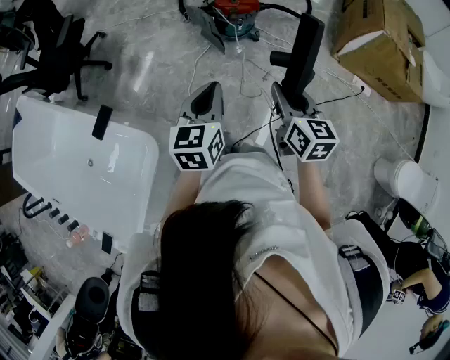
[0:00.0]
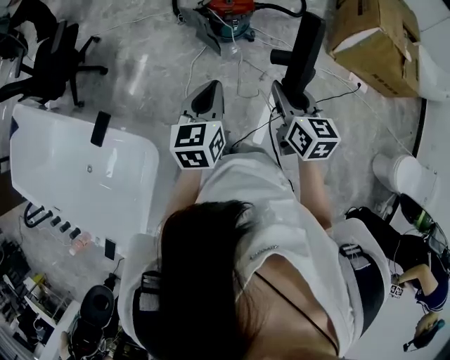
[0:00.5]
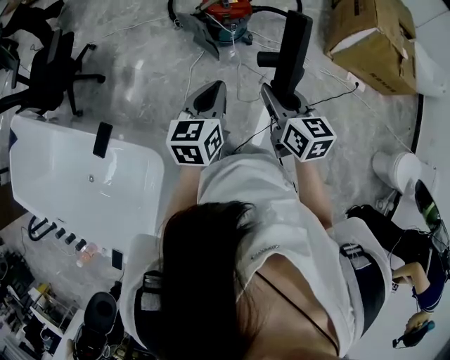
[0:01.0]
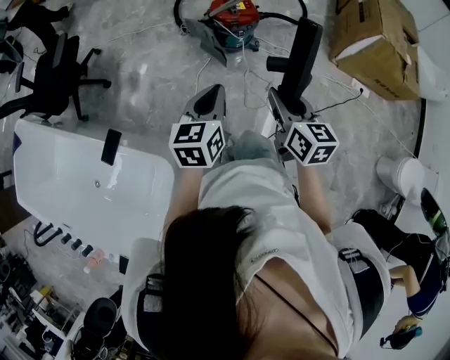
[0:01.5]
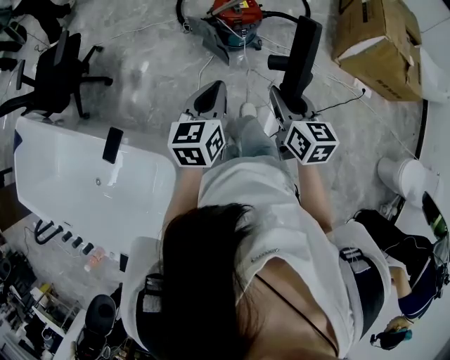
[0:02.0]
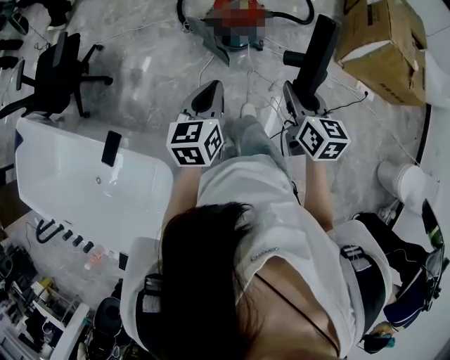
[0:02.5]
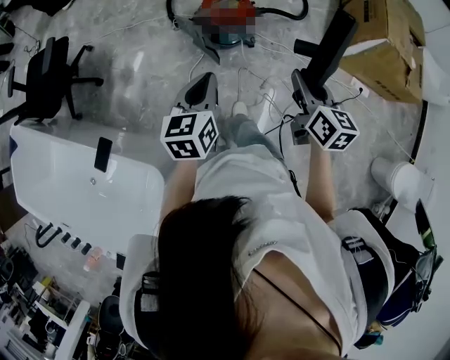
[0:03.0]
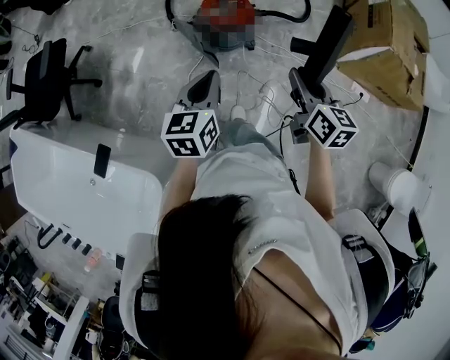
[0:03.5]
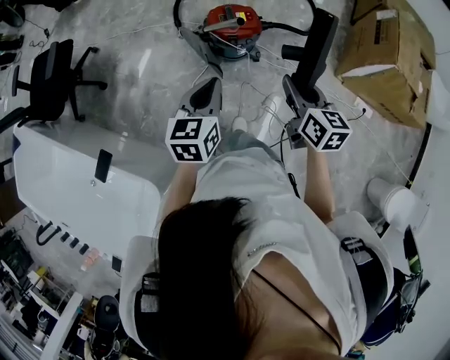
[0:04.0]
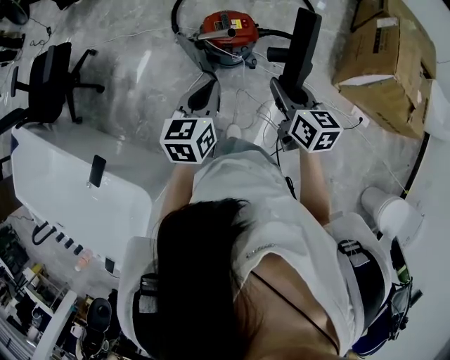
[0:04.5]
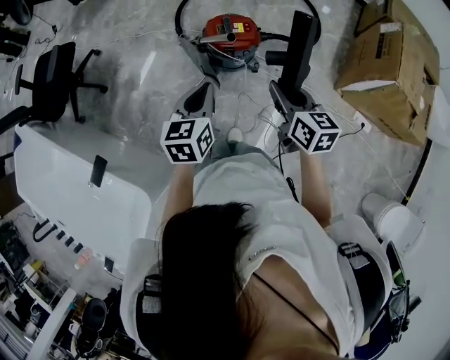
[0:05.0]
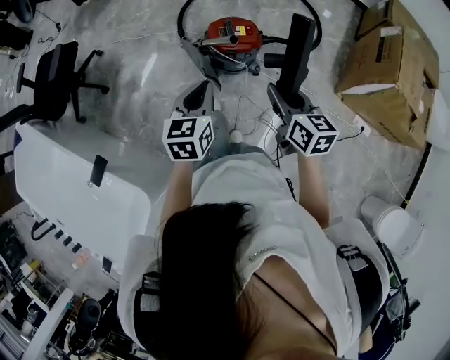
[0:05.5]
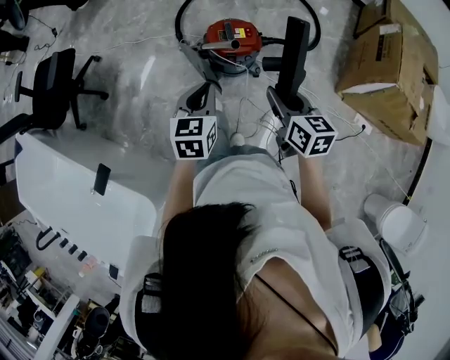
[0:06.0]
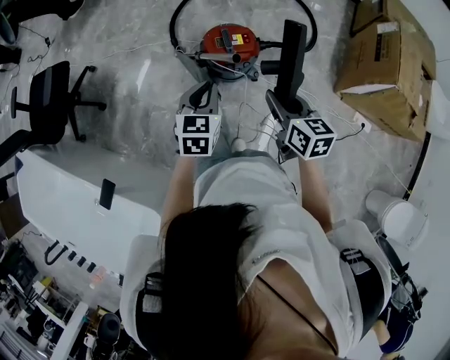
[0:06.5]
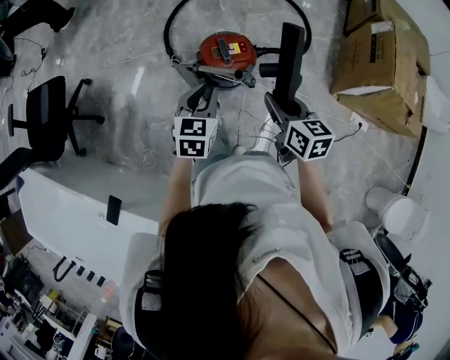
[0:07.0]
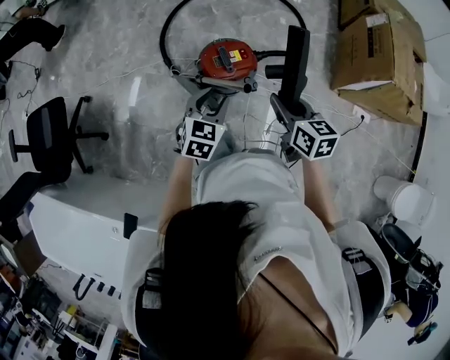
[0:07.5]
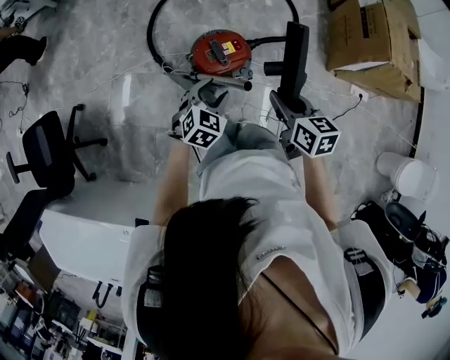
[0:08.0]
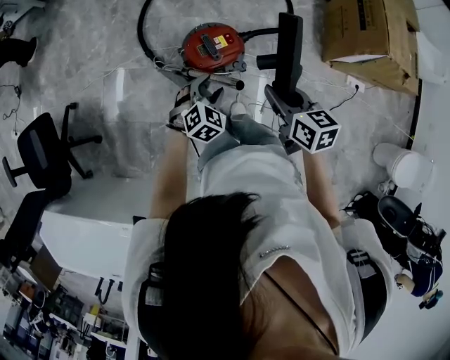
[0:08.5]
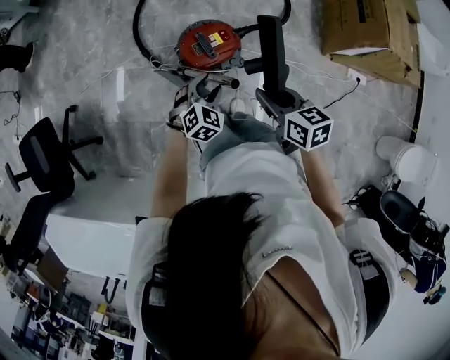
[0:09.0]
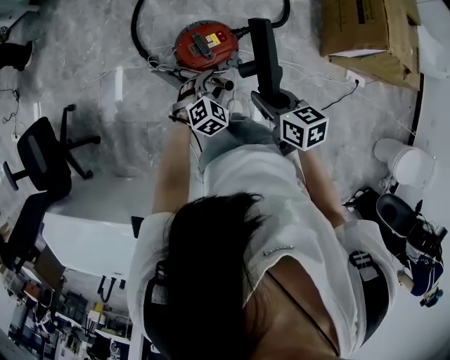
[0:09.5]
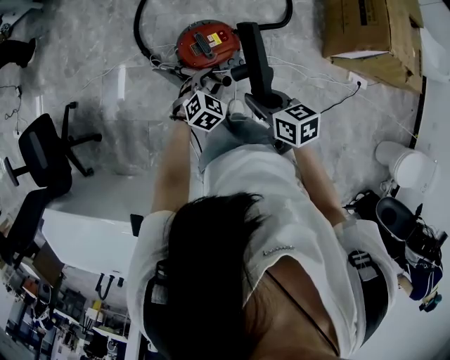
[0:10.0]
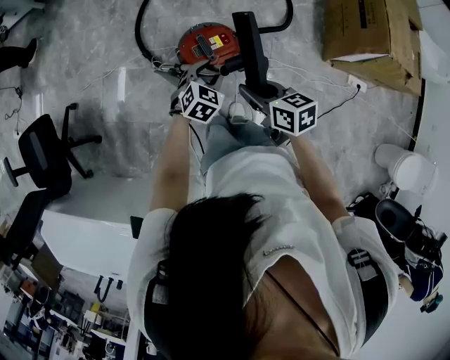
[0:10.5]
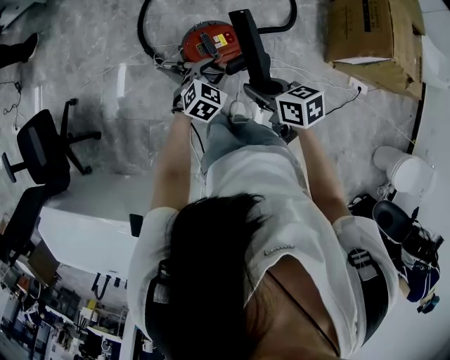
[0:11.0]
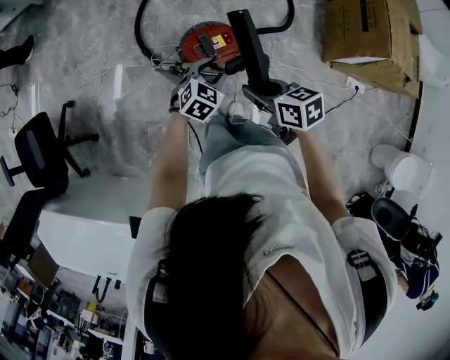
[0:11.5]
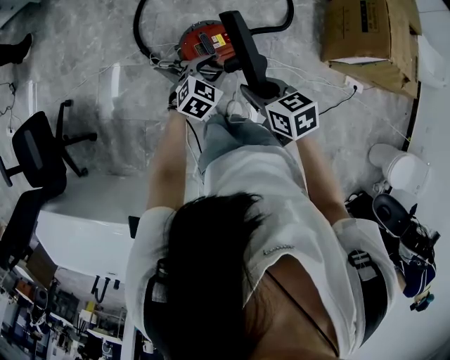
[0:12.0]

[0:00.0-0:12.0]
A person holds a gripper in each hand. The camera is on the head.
0:00.0 to 0:02.0: The right gripper shifts some 10 cm to the left and forward. The left gripper heads forward and to the left, covering approximately 10 cm.
0:02.0 to 0:04.0: The right gripper moves forward and to the right, approximately 25 cm; the left gripper heads forward, covering roughly 20 cm.
0:04.0 to 0:06.0: Both grippers move forward, about 5 cm.
0:06.0 to 0:08.0: The left gripper moves forward and downward, about 20 cm, swivels approximately 50 degrees, and opens. The right gripper goes about 15 cm forward.
0:08.0 to 0:10.0: The left gripper goes roughly 10 cm downward and to the right.
0:10.0 to 0:12.0: The right gripper changes place by some 5 cm; the left gripper shifts roughly 5 cm forward.

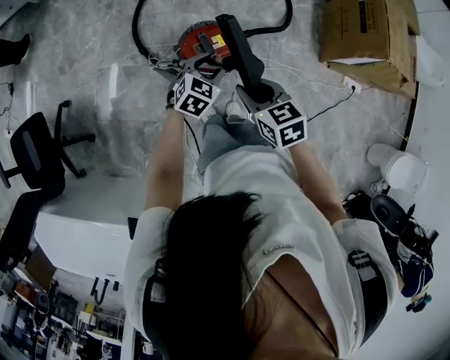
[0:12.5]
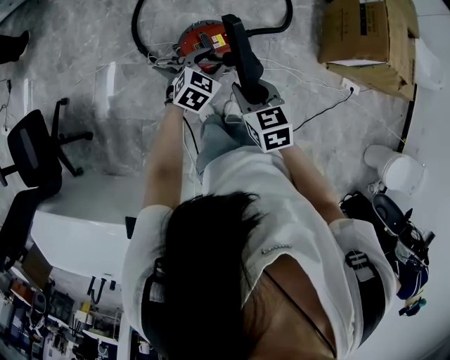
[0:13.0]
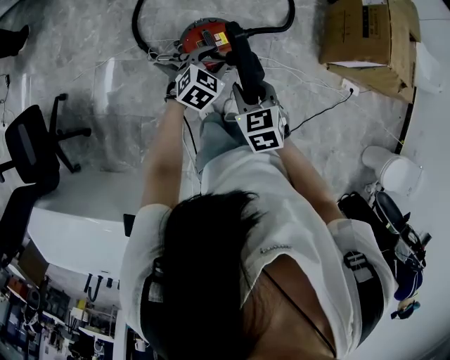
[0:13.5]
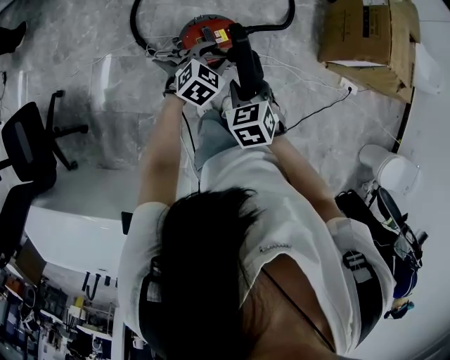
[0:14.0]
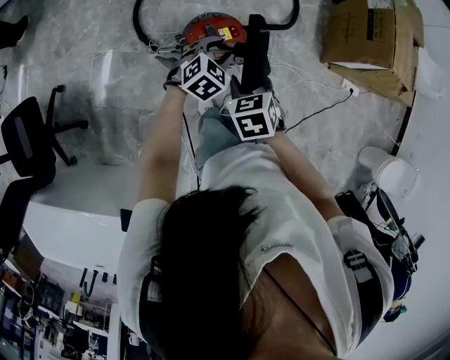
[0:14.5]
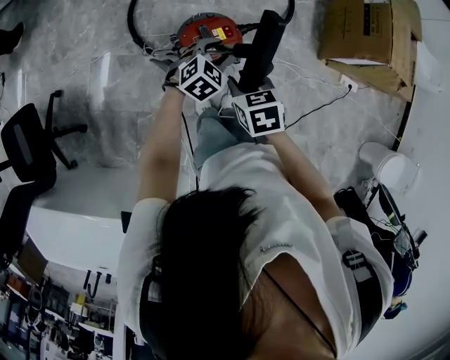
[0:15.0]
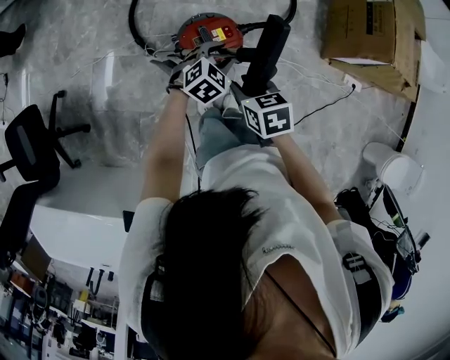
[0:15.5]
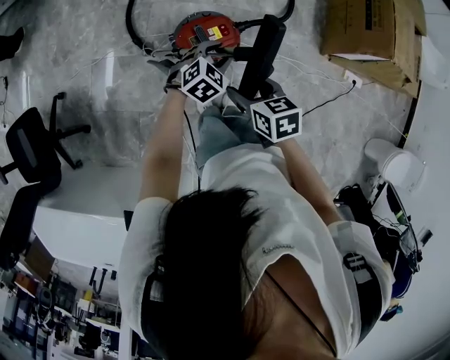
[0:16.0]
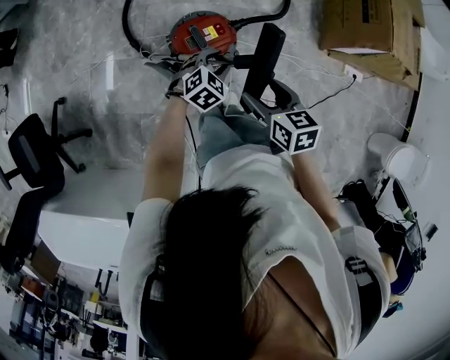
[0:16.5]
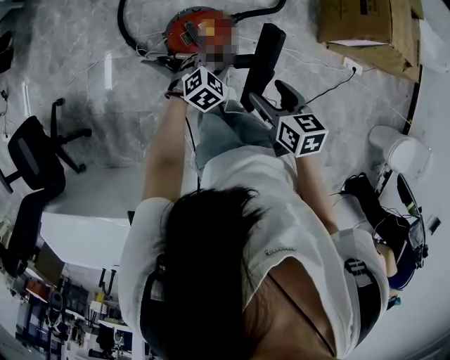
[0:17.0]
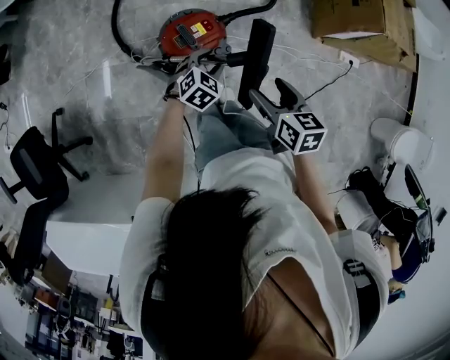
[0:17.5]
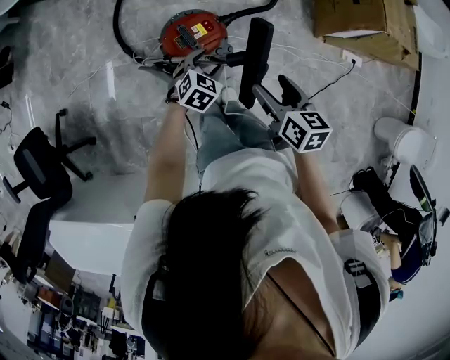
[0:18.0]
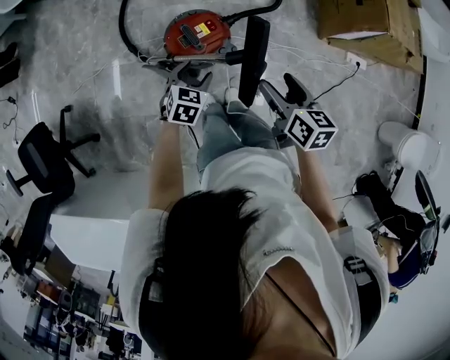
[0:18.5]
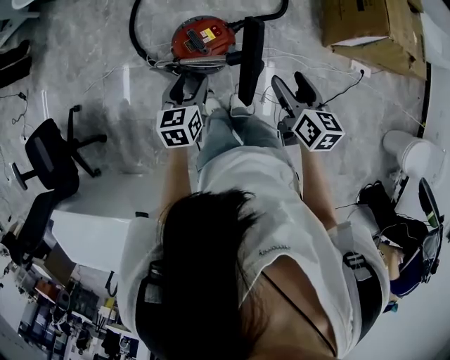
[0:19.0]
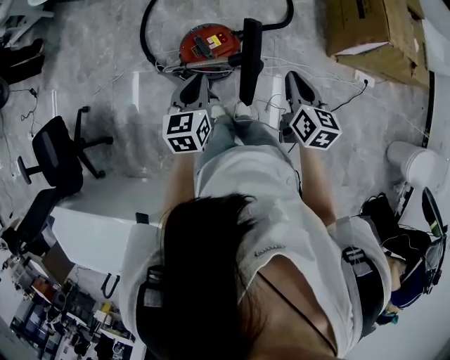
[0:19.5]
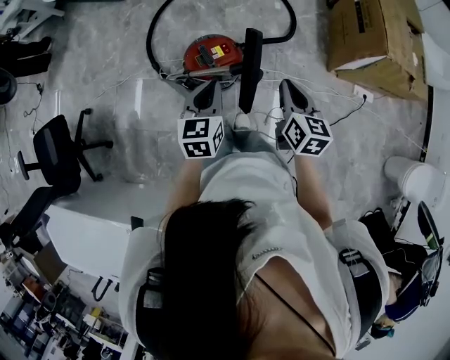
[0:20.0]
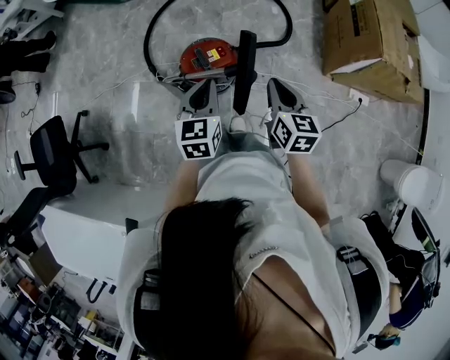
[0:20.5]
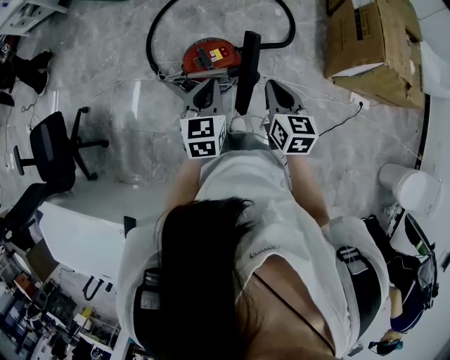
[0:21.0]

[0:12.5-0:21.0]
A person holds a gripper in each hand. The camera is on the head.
0:12.5 to 0:14.5: The right gripper changes place by about 5 cm, and changes its angle by roughly 20 degrees.
0:14.5 to 0:16.5: The left gripper travels to the right by some 5 cm. The right gripper is displaced to the right by some 10 cm, turns by approximately 30 degrees, and opens up.
0:16.5 to 0:19.0: The right gripper travels to the right by some 10 cm, and rotates roughly 20 degrees; the left gripper travels upward, backward and to the left by about 15 cm, and rotates around the line of its fingers by some 40 degrees, counterclockwise from behind.
0:19.0 to 0:21.0: The left gripper is displaced upward and to the right by some 10 cm, and closes up, while the right gripper closes up.

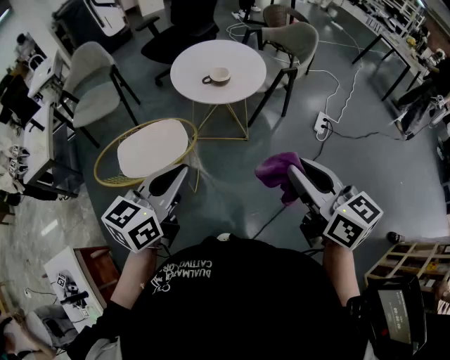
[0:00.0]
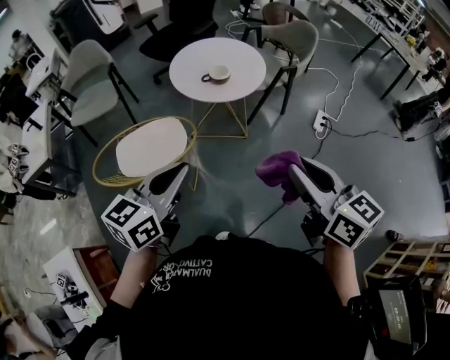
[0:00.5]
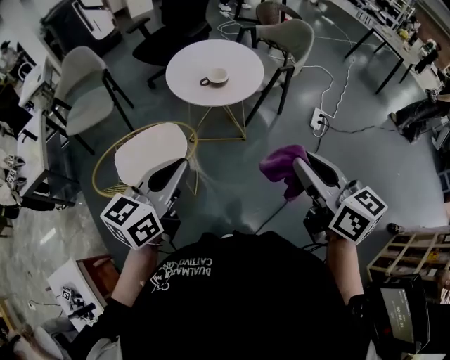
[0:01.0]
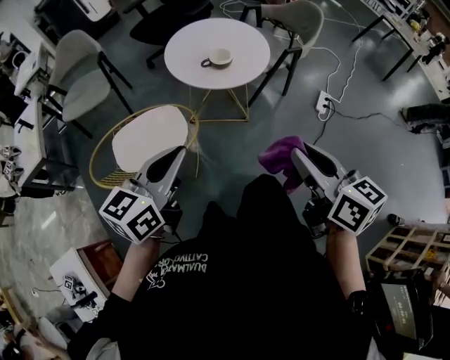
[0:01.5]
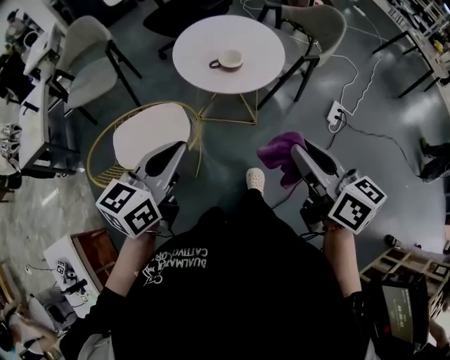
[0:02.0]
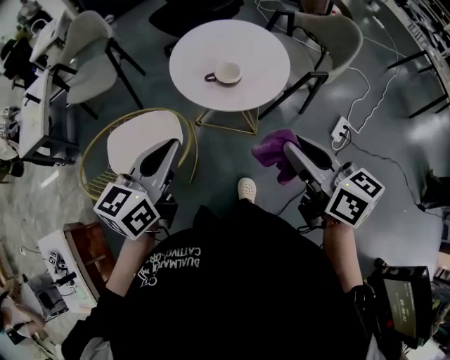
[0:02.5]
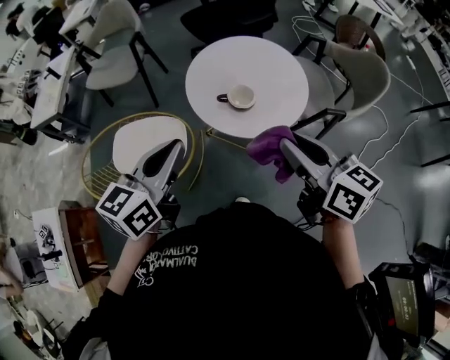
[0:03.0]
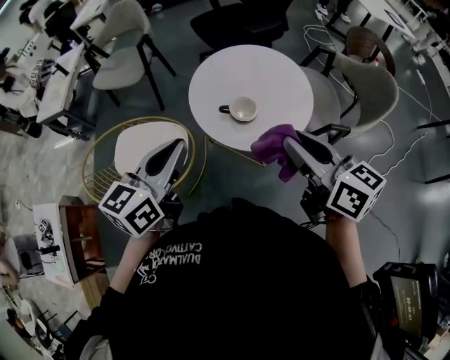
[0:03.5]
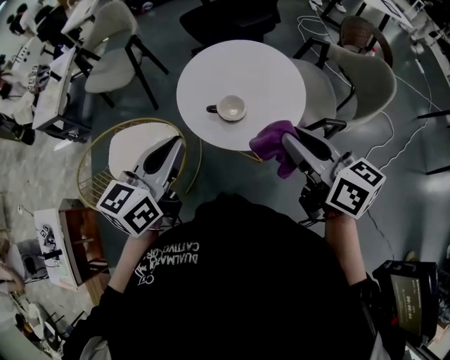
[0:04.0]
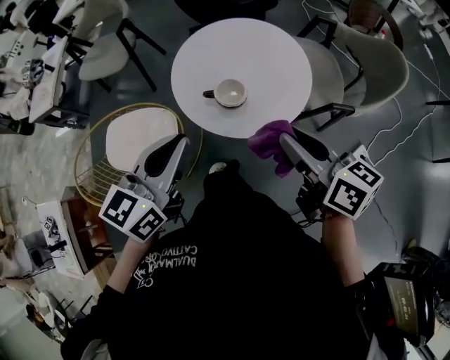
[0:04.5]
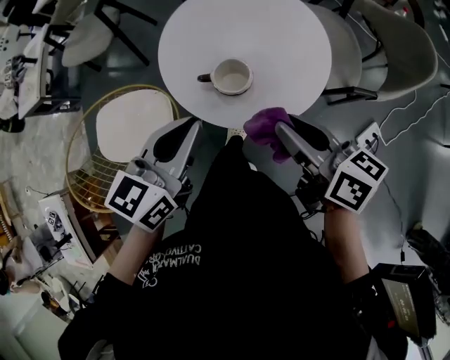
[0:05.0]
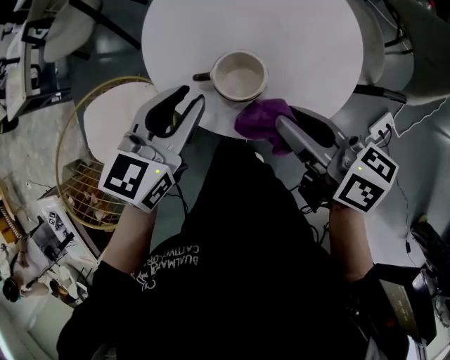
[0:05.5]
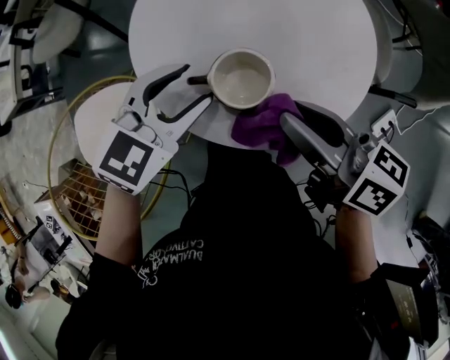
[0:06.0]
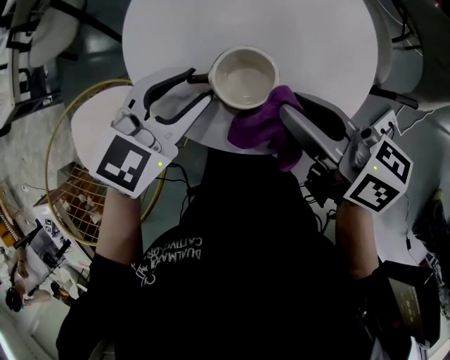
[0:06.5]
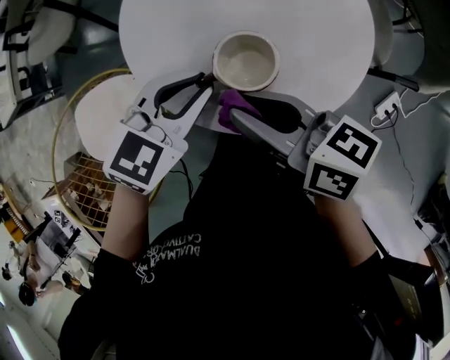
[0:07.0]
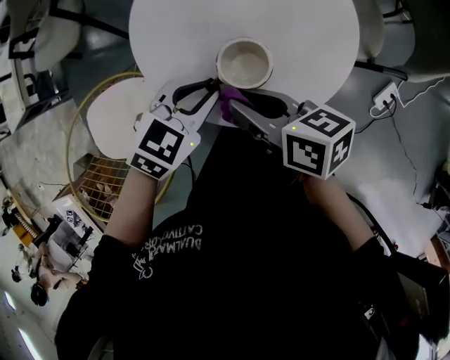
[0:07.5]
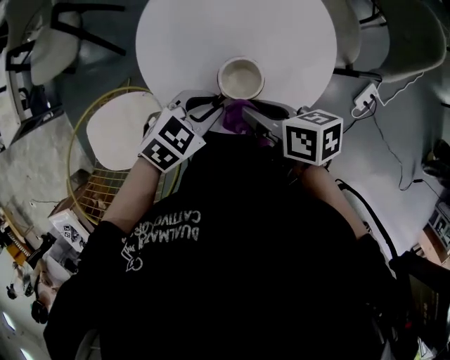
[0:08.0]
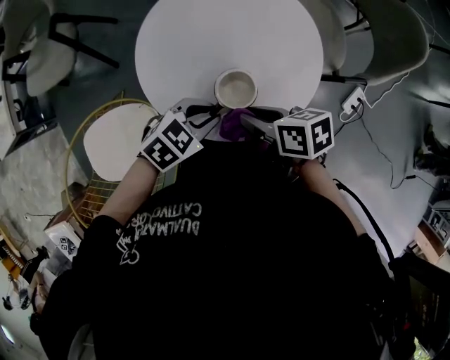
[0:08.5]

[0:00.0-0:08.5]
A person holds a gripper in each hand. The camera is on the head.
0:00.0 to 0:02.0: Both grippers move forward, about 15 cm.
0:02.0 to 0:04.0: The left gripper ends up roughly 25 cm from where it was, and rotates some 20 degrees, while the right gripper ends up some 35 cm from where it was, and swivels approximately 30 degrees.
0:04.0 to 0:06.5: Both grippers move downward and forward, approximately 30 cm. The left gripper changes its angle by approximately 40 degrees, and opens up.
0:06.5 to 0:08.5: The left gripper moves roughly 5 cm, rotates approximately 30 degrees, and closes up. Meanwhile the right gripper swivels some 30 degrees.
